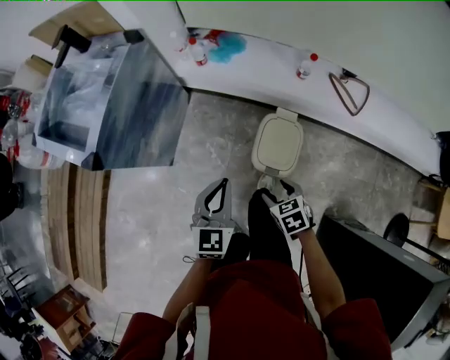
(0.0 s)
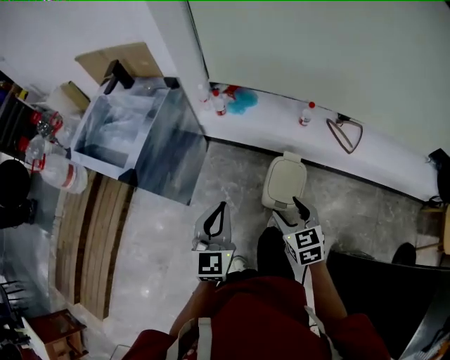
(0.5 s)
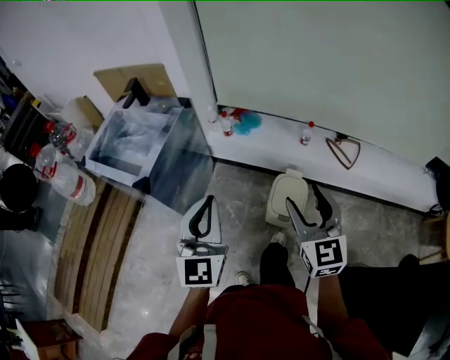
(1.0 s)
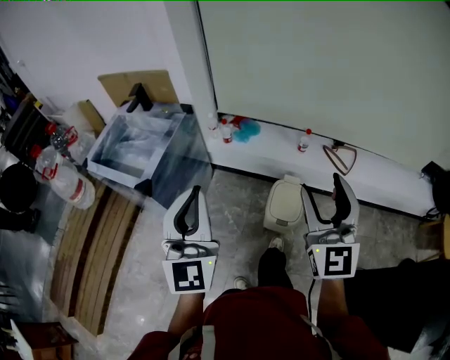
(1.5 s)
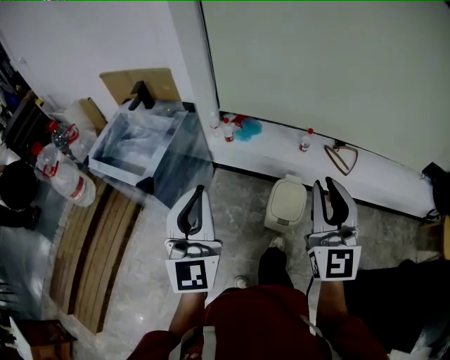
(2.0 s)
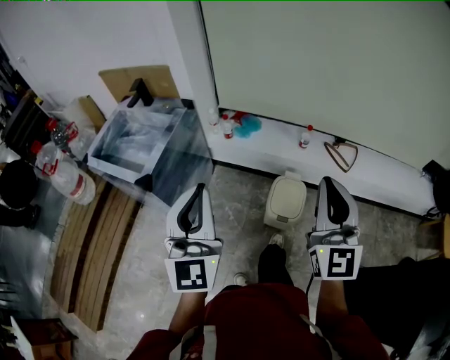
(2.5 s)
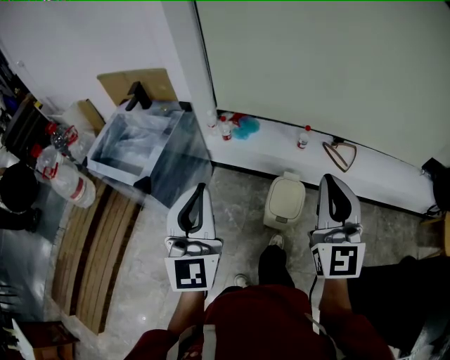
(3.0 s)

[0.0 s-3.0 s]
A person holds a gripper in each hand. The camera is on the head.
0.0 to 1.5 s: The grippers both shift upward by roughly 40 cm. The left gripper points its fingers about 30 degrees further upward; the right gripper points its fingers approximately 70 degrees further upward.
1.5 to 3.0 s: The right gripper closes.

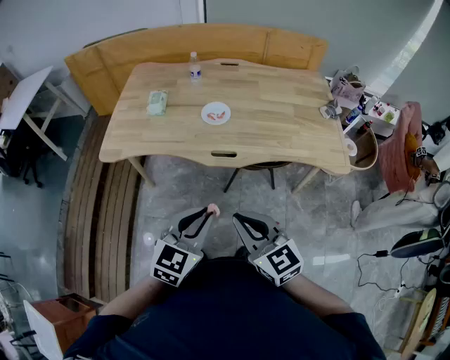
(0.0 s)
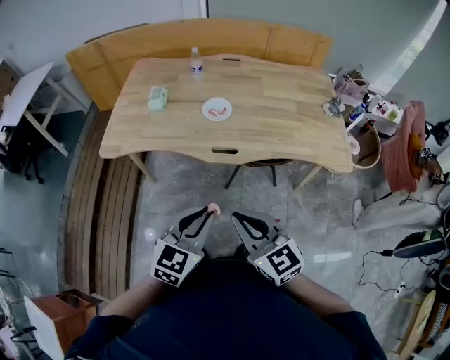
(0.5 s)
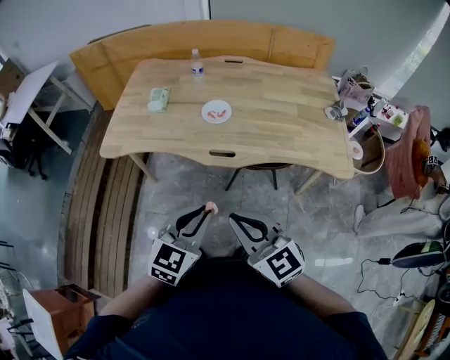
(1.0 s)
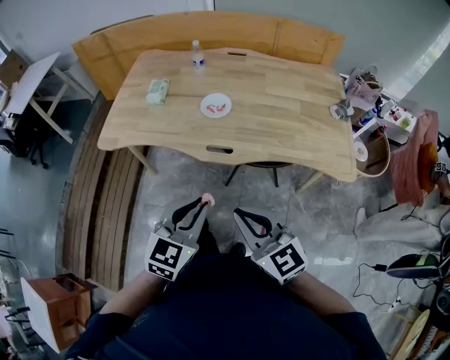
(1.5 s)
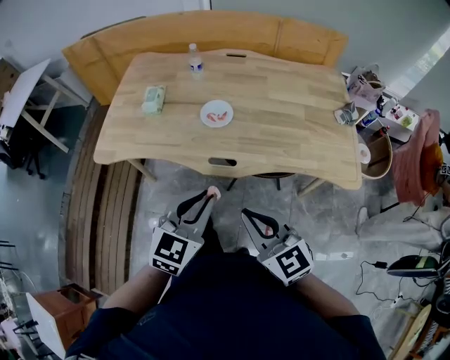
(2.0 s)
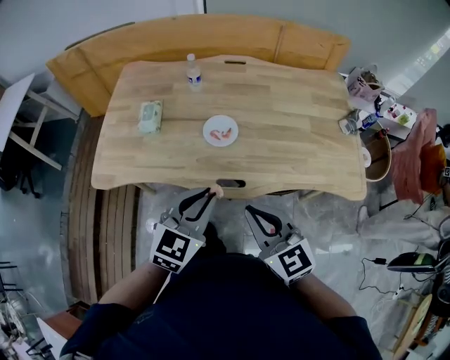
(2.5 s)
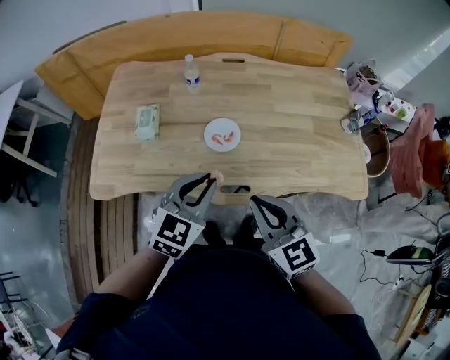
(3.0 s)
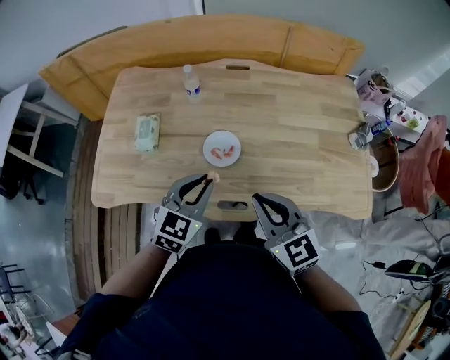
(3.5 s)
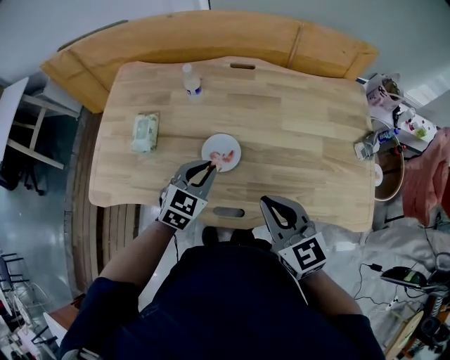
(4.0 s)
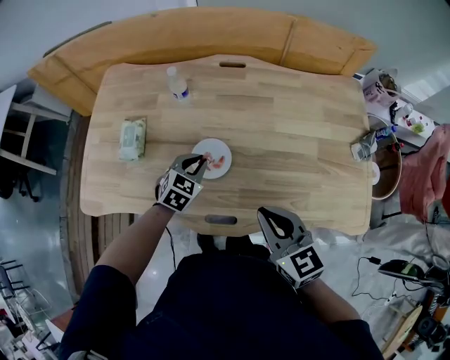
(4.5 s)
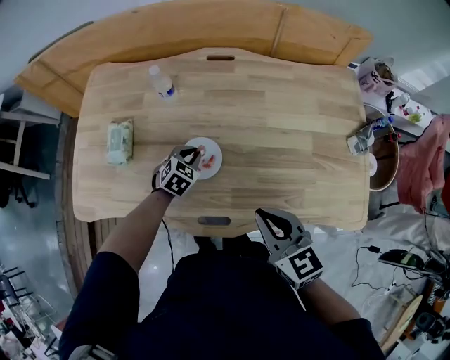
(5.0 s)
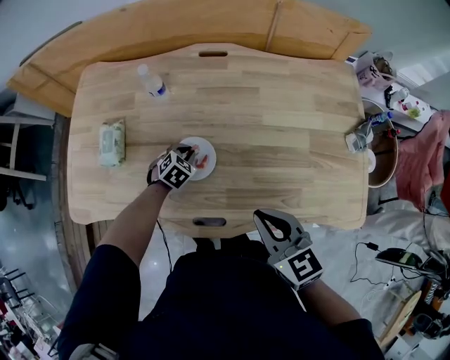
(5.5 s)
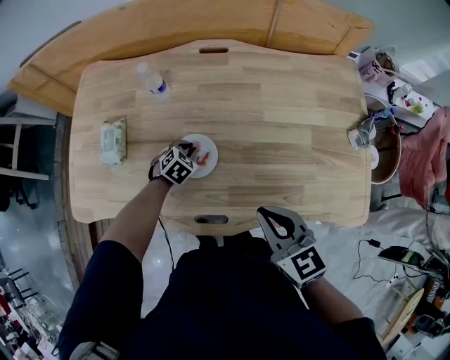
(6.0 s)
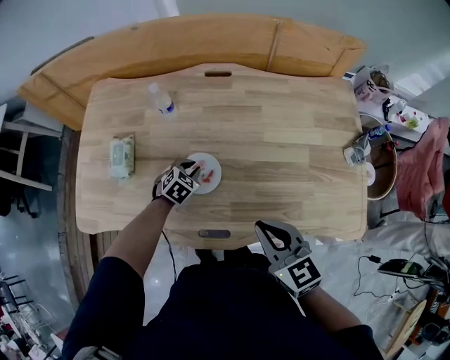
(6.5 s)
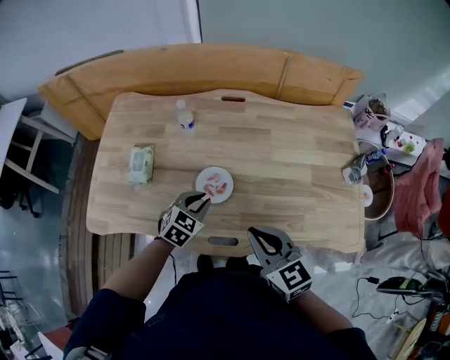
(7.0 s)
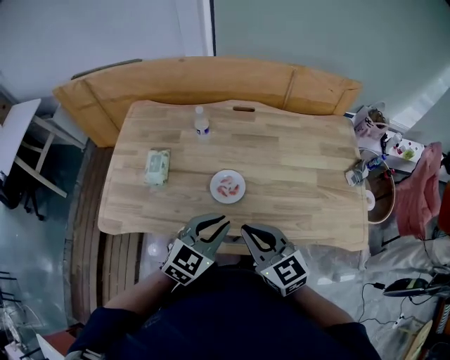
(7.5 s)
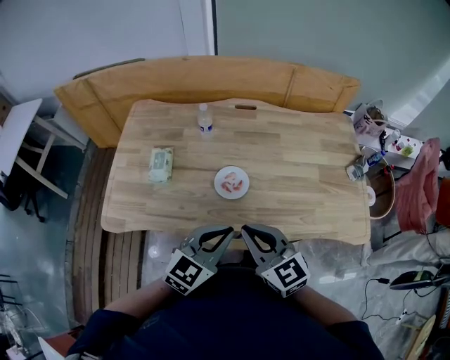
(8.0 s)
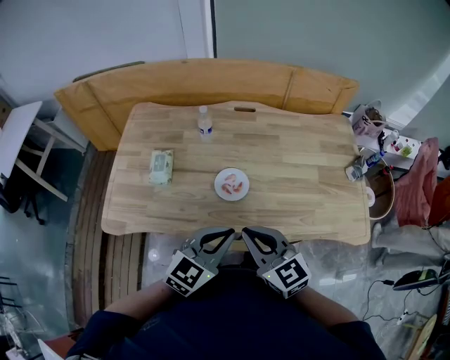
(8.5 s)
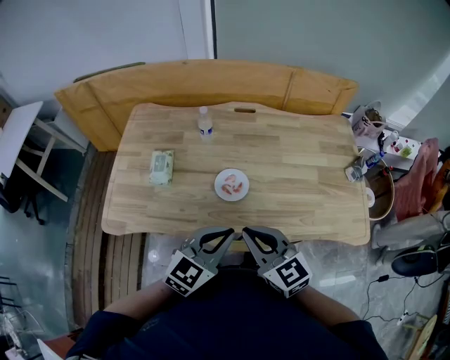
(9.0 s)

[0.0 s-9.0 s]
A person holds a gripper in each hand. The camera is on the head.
0.0 to 2.0 s: The left gripper heads forward, covering roughly 15 cm, while the right gripper moves forward and to the right, approximately 10 cm.
2.0 to 4.5 s: The left gripper heads forward and downward, covering about 40 cm, and turns by roughly 20 degrees. Meanwhile the right gripper shifts some 30 cm forward.
4.5 to 7.0 s: The left gripper shifts some 5 cm backward, and moves roughly 15 cm downward and comes back.
7.0 to 9.0 s: The left gripper heads upward and backward, covering about 25 cm, and changes its angle by approximately 30 degrees, while the right gripper goes some 10 cm to the left and backward.

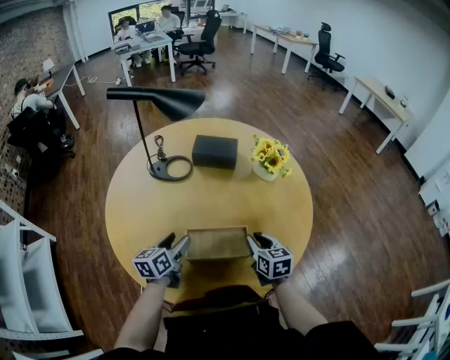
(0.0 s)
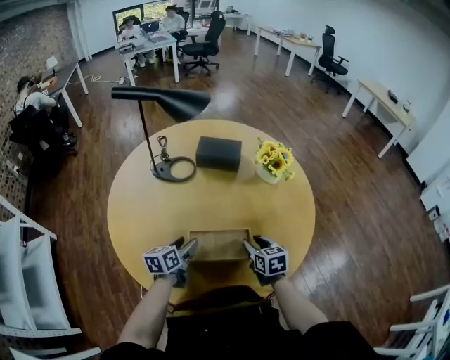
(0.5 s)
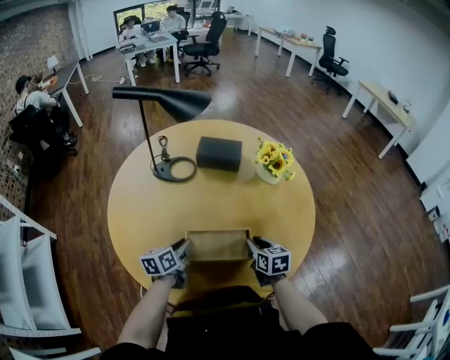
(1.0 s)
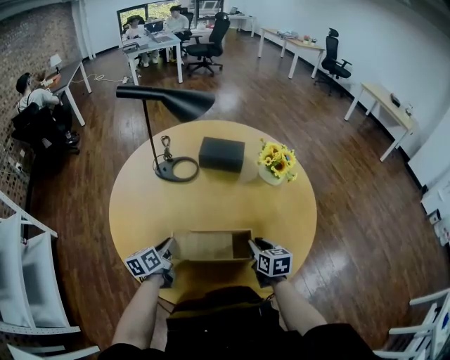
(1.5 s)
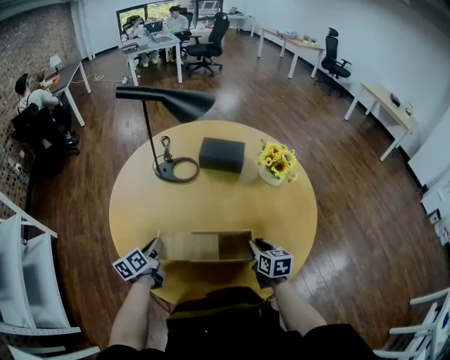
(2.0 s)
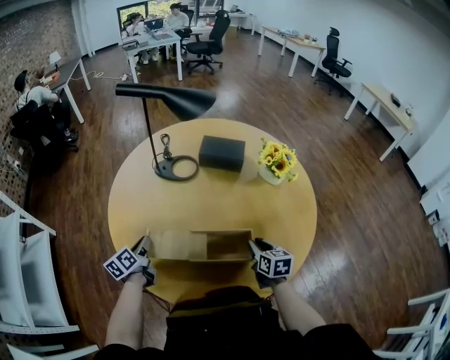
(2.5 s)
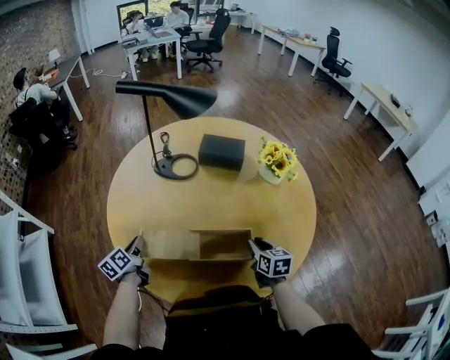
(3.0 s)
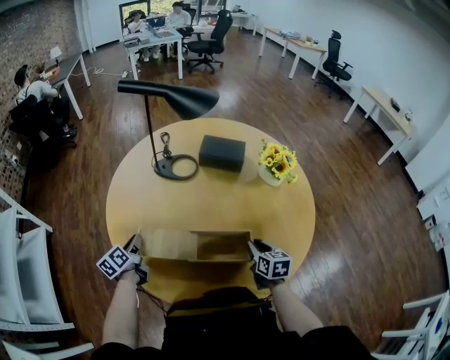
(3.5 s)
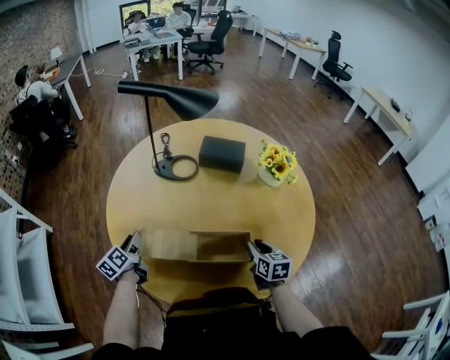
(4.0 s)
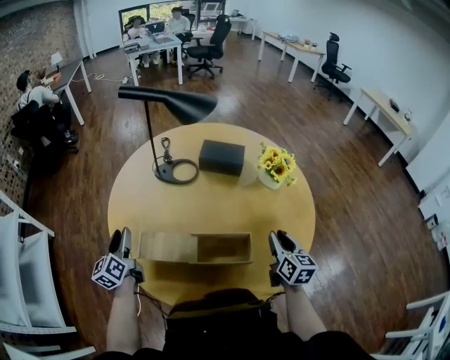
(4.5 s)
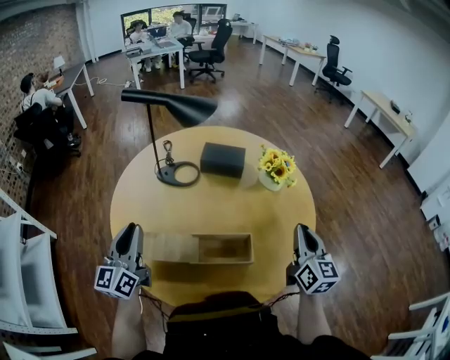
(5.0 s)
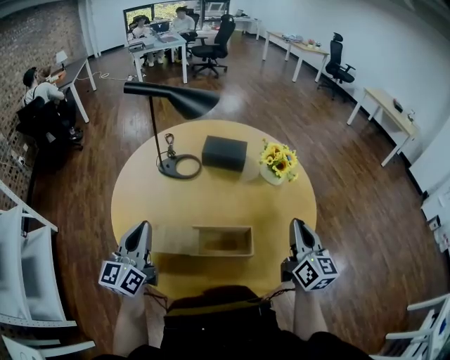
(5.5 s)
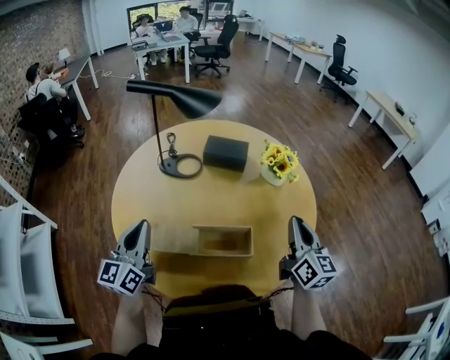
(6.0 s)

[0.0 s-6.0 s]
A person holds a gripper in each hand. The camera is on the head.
0.0 to 2.0 s: The left gripper is displaced to the left by roughly 10 cm, rotates approximately 20 degrees, and closes.
2.0 to 4.0 s: The left gripper heads to the left, covering approximately 10 cm, and opens up.
4.0 to 6.0 s: The right gripper goes some 25 cm upward, points its fingers roughly 30 degrees further upward, and closes up. Meanwhile the left gripper is displaced upward and to the right by roughly 25 cm, changes its angle by some 40 degrees, and closes up.

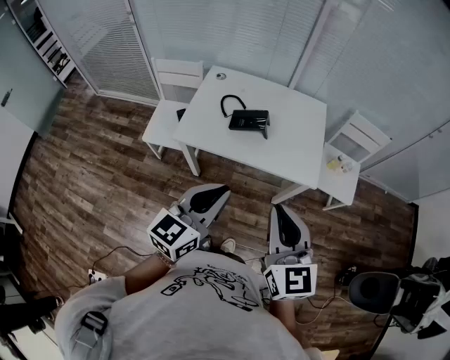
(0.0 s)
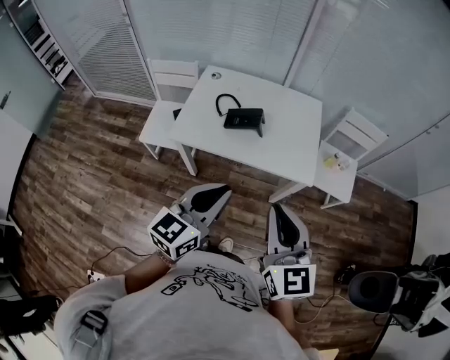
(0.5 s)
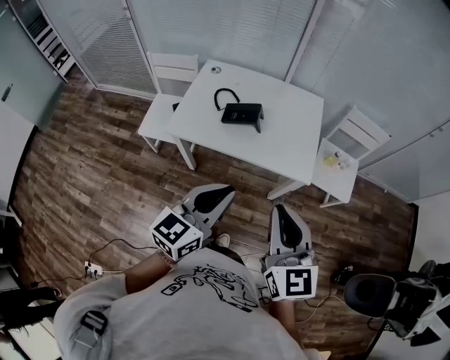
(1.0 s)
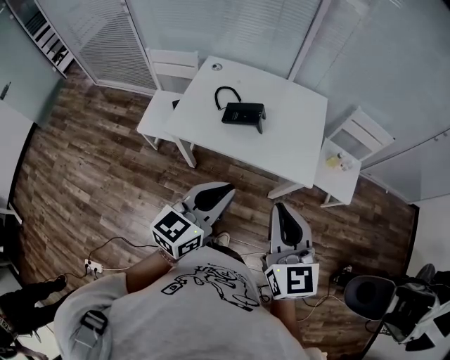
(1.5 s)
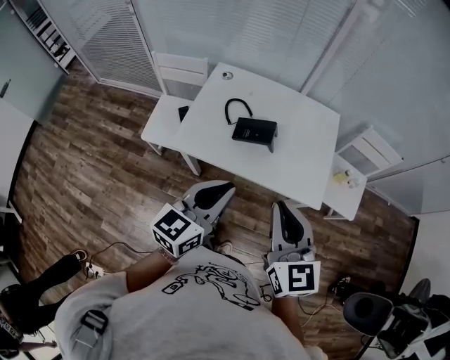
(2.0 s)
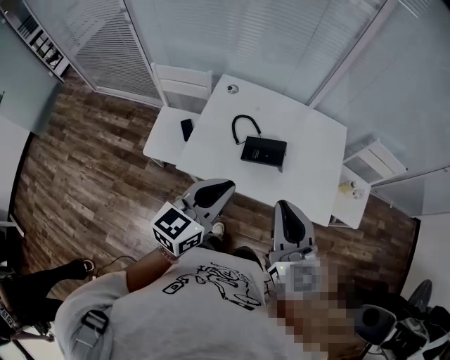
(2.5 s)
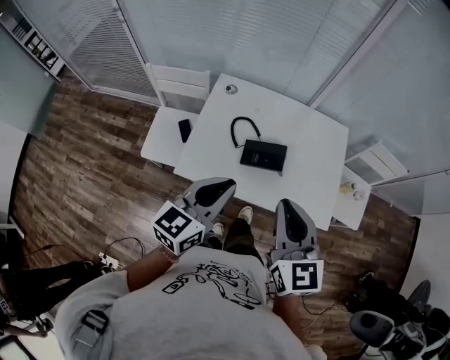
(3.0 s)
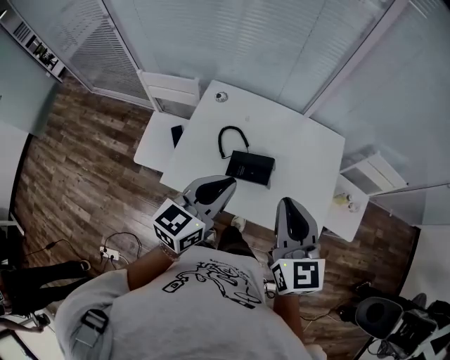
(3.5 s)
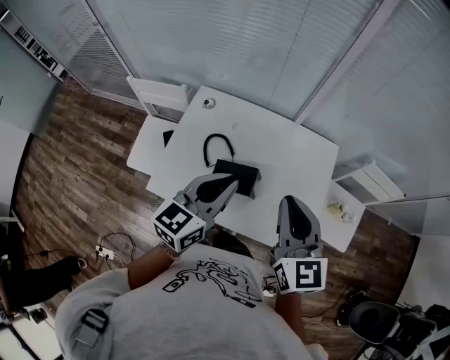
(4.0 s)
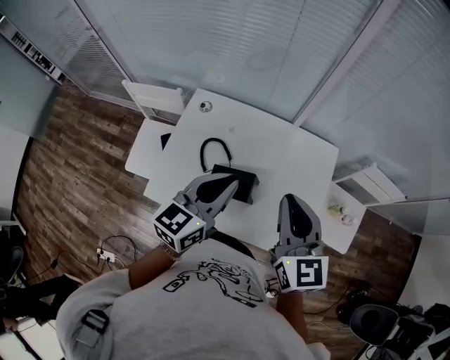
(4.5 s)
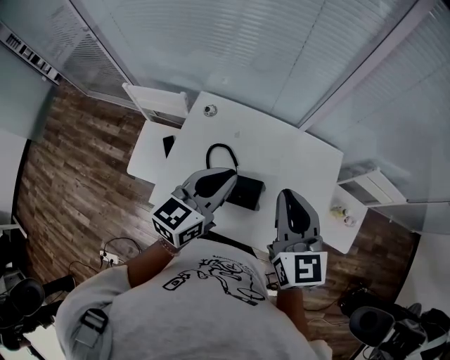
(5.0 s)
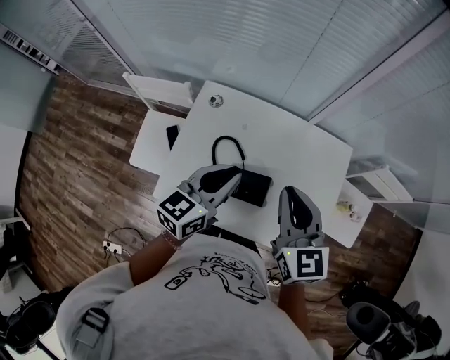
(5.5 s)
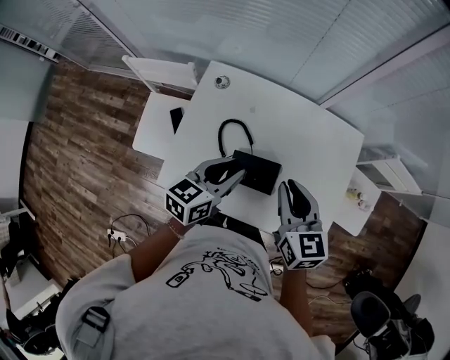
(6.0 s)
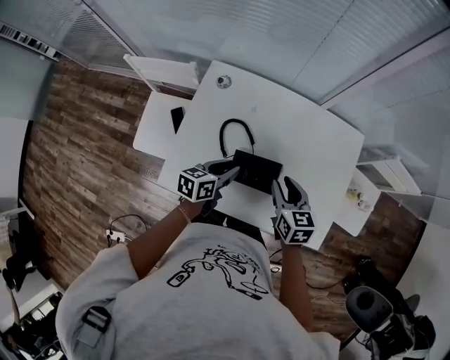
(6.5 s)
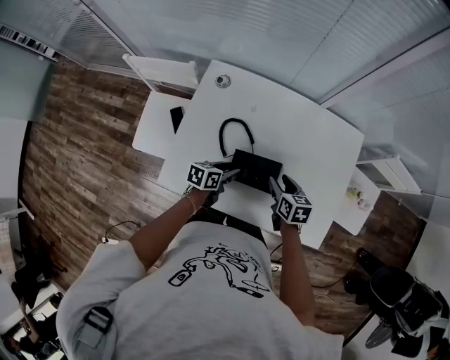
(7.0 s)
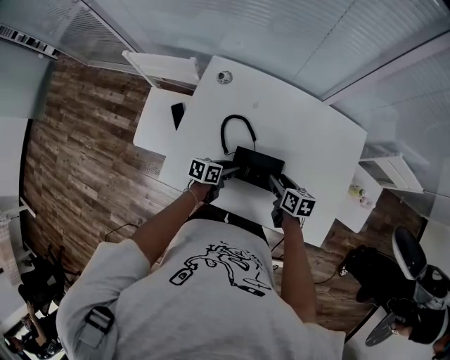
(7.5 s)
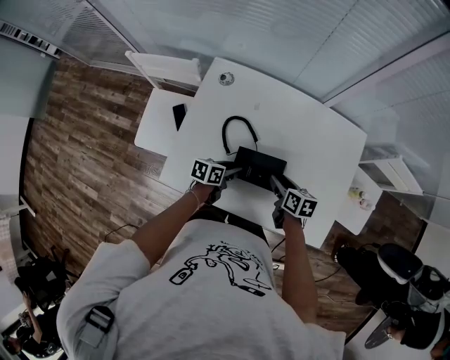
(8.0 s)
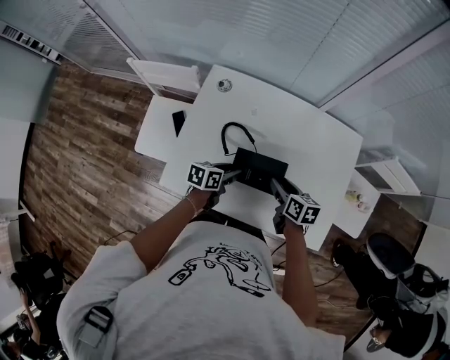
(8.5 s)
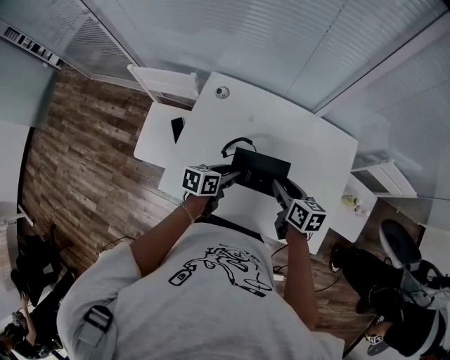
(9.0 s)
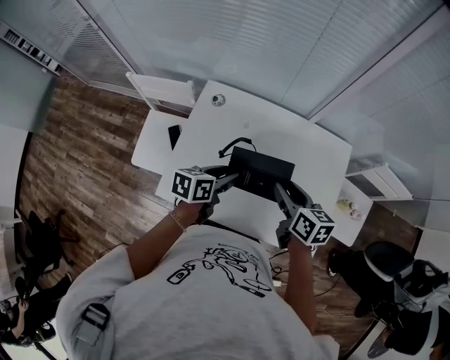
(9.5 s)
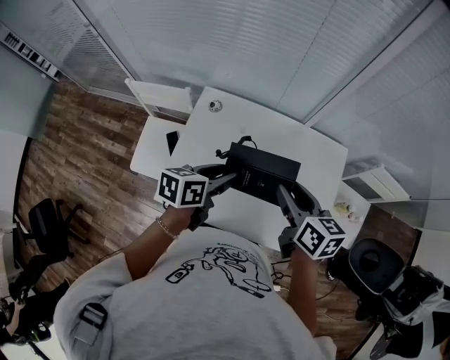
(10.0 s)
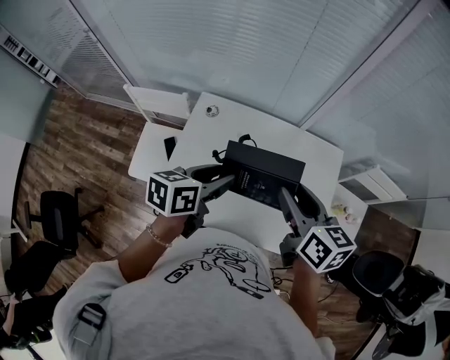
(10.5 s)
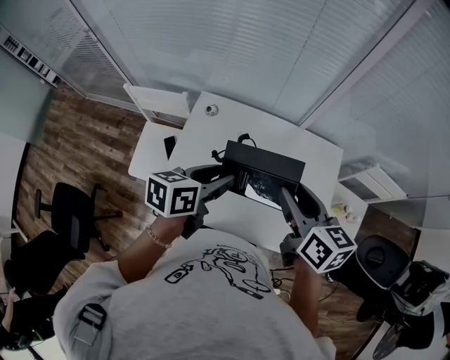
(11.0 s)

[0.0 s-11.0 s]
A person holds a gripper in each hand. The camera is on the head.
0.0 to 2.0 s: The two grippers go approximately 10 cm forward.
2.0 to 3.5 s: The grippers both shift forward by roughly 20 cm.
3.5 to 5.5 s: The two grippers go about 15 cm forward.
5.5 to 7.5 s: Both grippers move downward, some 35 cm. The right gripper changes its angle by approximately 50 degrees, and opens. Meanwhile the left gripper swivels roughly 40 degrees, and opens up.
7.5 to 9.0 s: The grippers both shift upward by approximately 10 cm.
9.0 to 11.0 s: The two grippers go about 20 cm upward.
